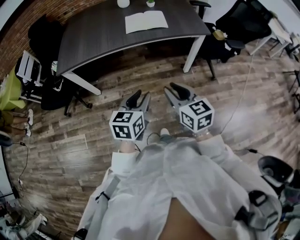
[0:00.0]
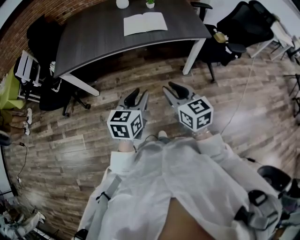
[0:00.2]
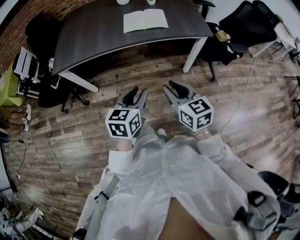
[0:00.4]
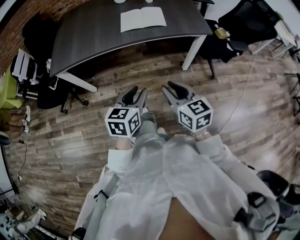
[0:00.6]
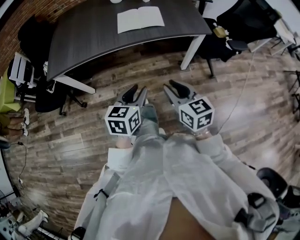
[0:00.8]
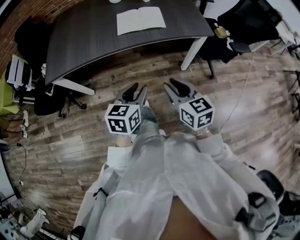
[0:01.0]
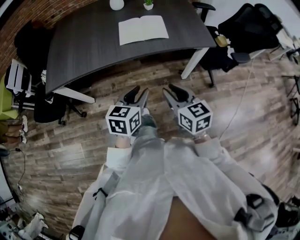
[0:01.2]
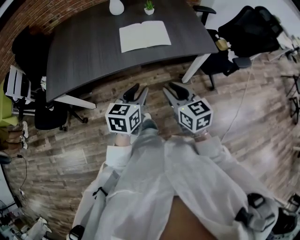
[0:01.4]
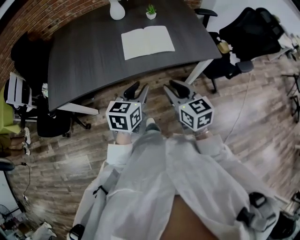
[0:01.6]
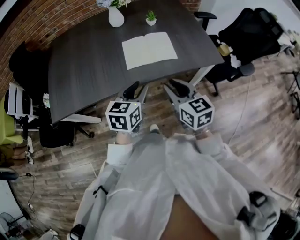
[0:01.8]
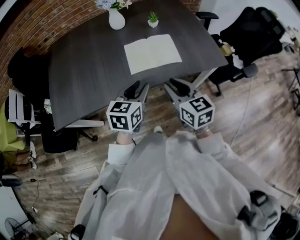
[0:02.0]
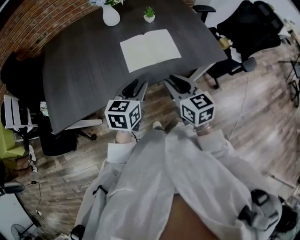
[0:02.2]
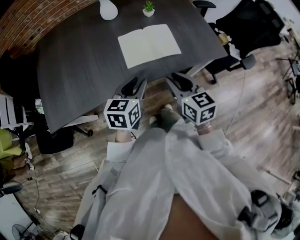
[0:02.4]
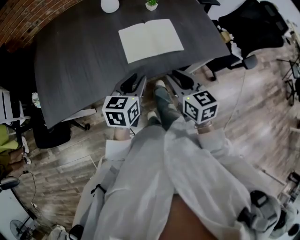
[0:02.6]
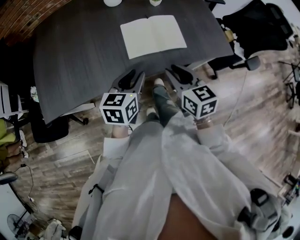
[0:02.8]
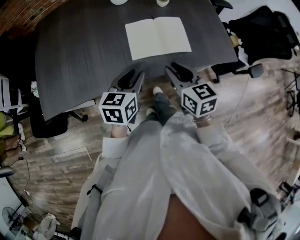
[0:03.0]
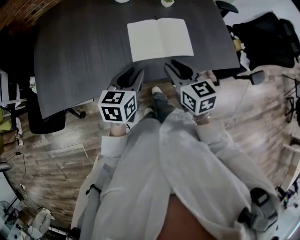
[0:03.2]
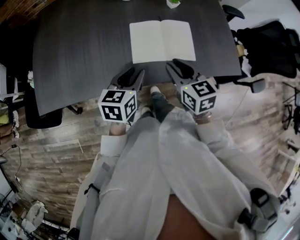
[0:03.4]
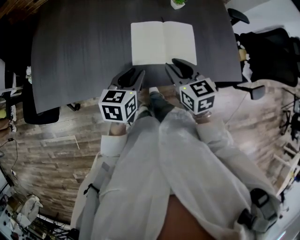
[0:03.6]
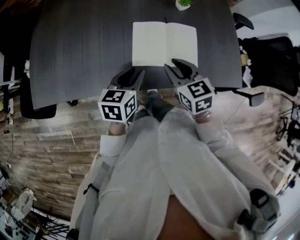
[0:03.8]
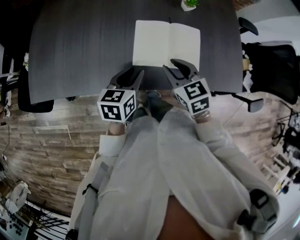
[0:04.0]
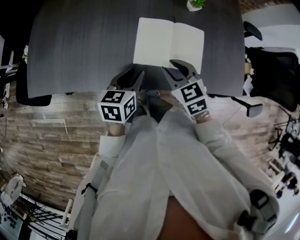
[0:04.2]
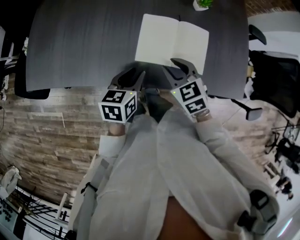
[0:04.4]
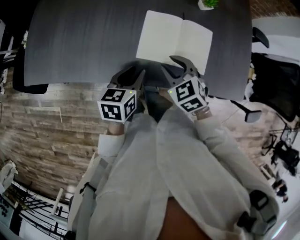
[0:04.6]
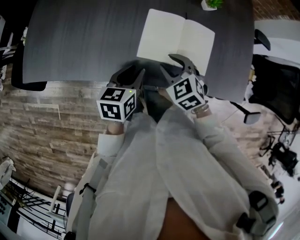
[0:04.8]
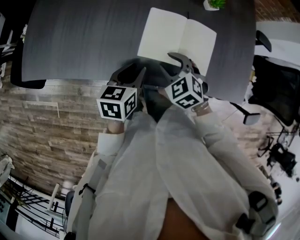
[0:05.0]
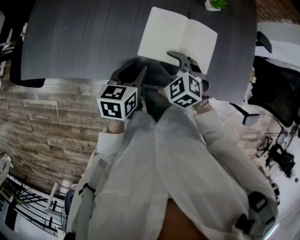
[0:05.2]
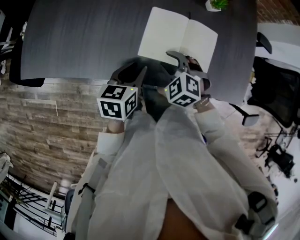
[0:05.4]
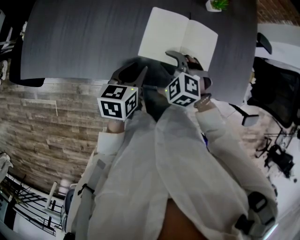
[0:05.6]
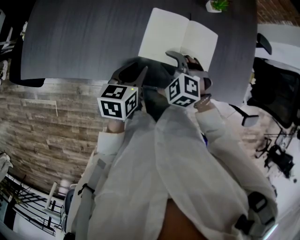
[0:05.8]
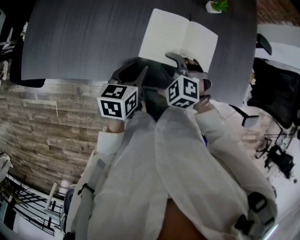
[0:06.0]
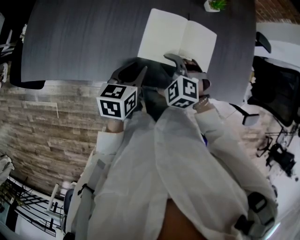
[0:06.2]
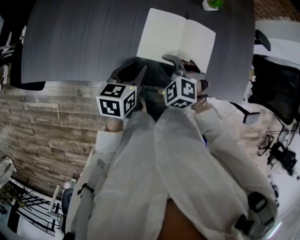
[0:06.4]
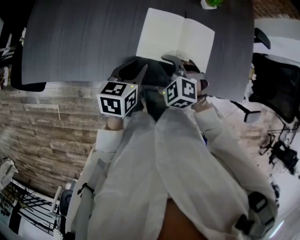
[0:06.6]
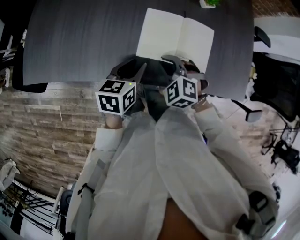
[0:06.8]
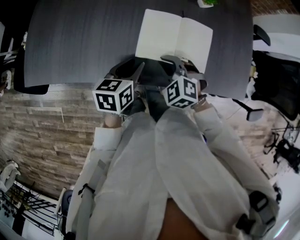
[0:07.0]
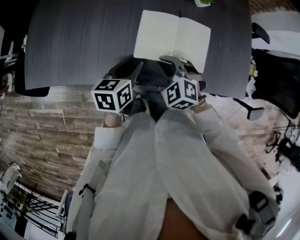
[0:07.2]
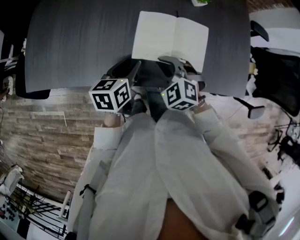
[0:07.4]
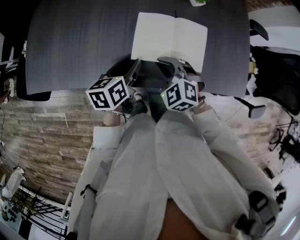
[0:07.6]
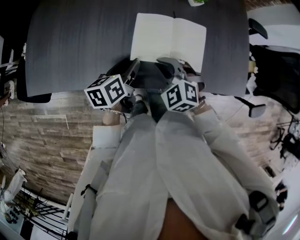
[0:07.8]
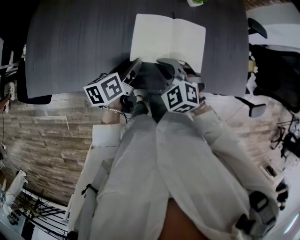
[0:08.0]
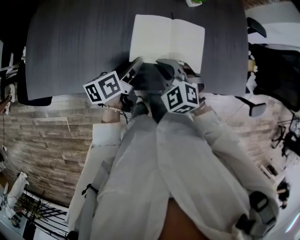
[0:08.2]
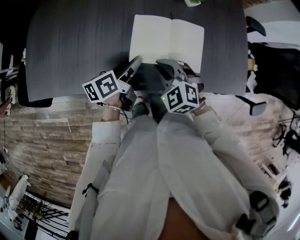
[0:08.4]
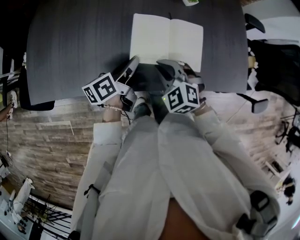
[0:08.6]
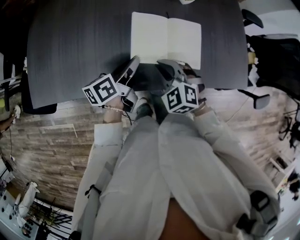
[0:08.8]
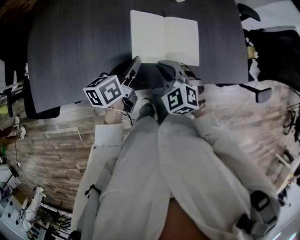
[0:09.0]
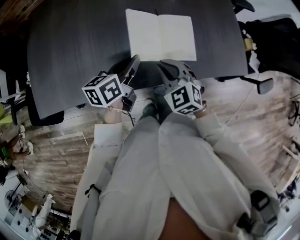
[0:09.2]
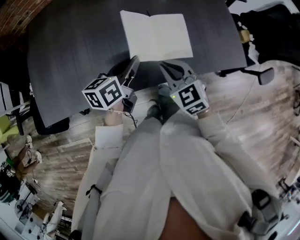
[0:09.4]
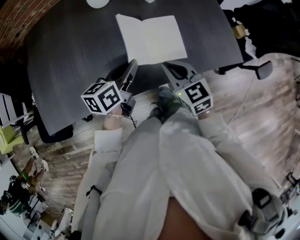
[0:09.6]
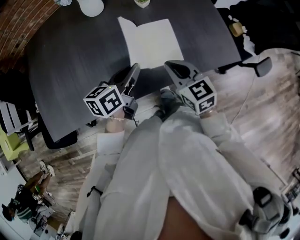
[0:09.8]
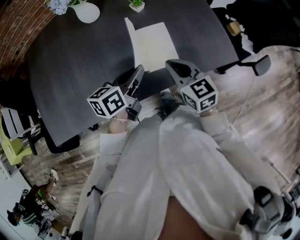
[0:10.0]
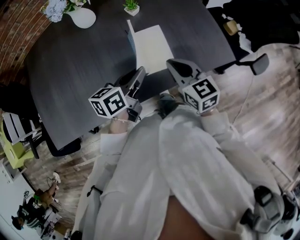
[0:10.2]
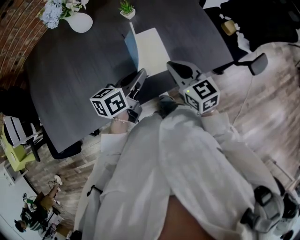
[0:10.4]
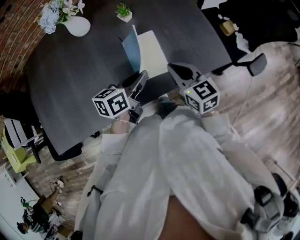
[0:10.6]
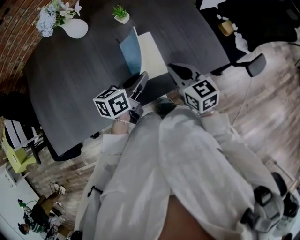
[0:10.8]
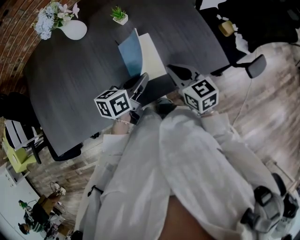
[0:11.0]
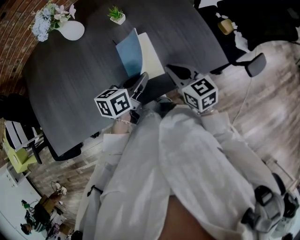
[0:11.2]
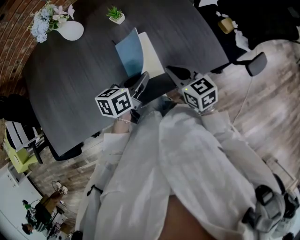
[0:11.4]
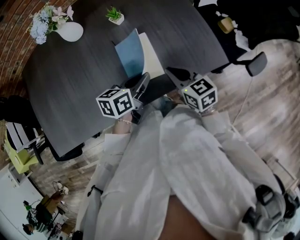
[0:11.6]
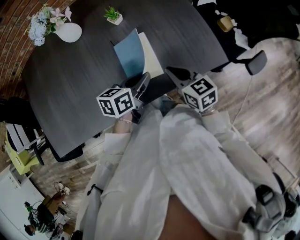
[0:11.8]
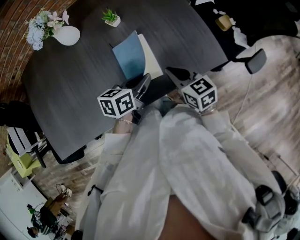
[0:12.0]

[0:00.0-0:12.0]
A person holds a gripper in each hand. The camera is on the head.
0:00.0 to 0:01.6: The grippers both shift forward by approximately 30 cm.
0:01.6 to 0:03.0: Both grippers travel together forward and to the left, about 15 cm.
0:03.0 to 0:04.4: The right gripper travels forward and downward by approximately 15 cm, and swivels roughly 40 degrees. Meanwhile the left gripper heads downward and forward, covering some 10 cm, and changes its angle by roughly 20 degrees.
0:04.4 to 0:06.0: The right gripper travels downward by about 5 cm, and rotates some 40 degrees.
0:06.0 to 0:07.6: The right gripper closes up.
0:07.6 to 0:09.0: The left gripper closes up.
0:09.0 to 0:10.4: The right gripper shifts roughly 15 cm to the right and upward, and rolls clockwise, seen from behind, by about 50 degrees. The left gripper heads to the right, covering about 15 cm, and changes its angle by roughly 20 degrees.
0:10.4 to 0:12.0: The right gripper shifts approximately 5 cm downward; the left gripper moves to the right, some 5 cm.

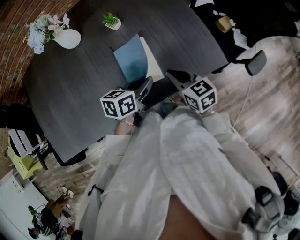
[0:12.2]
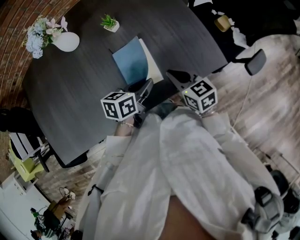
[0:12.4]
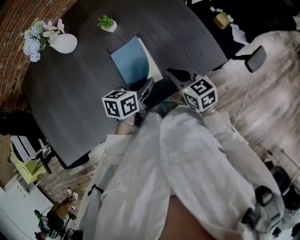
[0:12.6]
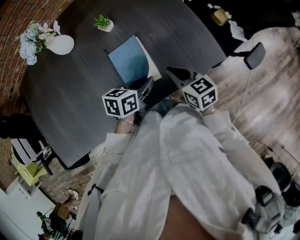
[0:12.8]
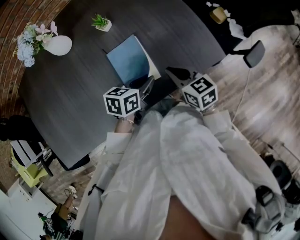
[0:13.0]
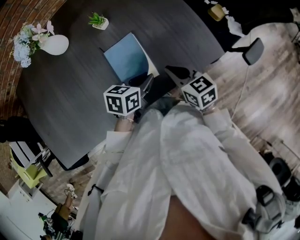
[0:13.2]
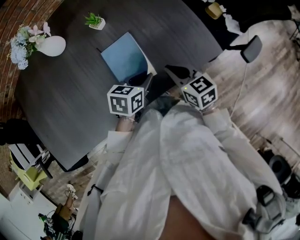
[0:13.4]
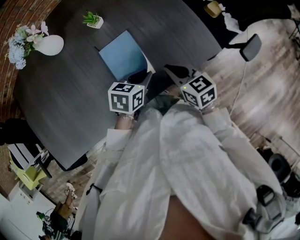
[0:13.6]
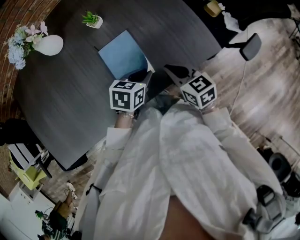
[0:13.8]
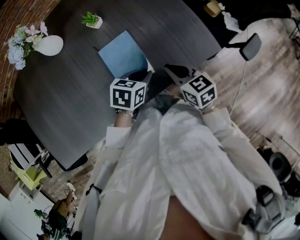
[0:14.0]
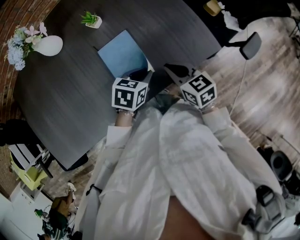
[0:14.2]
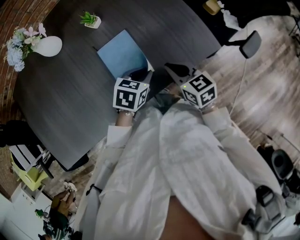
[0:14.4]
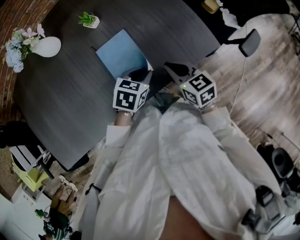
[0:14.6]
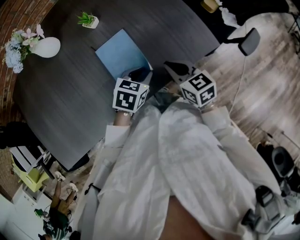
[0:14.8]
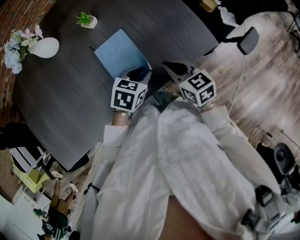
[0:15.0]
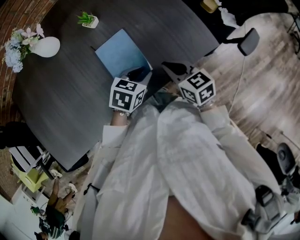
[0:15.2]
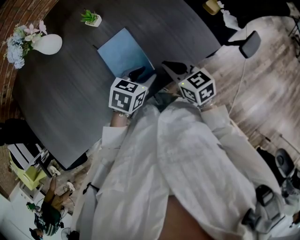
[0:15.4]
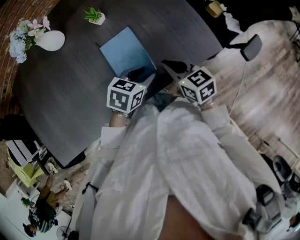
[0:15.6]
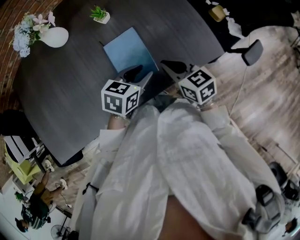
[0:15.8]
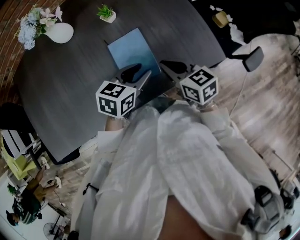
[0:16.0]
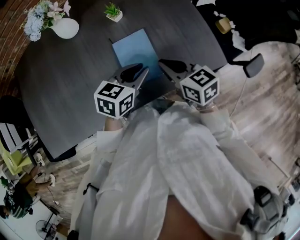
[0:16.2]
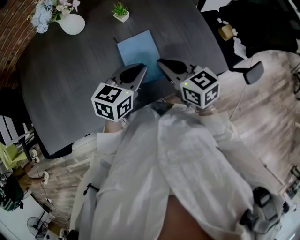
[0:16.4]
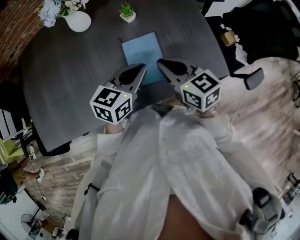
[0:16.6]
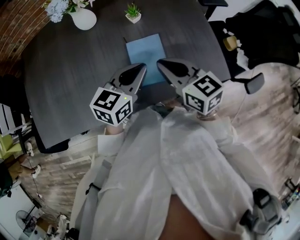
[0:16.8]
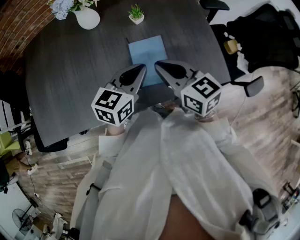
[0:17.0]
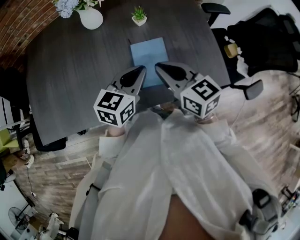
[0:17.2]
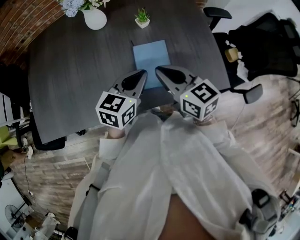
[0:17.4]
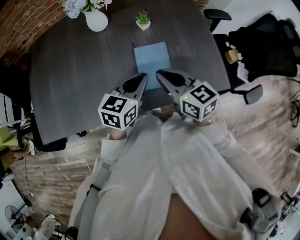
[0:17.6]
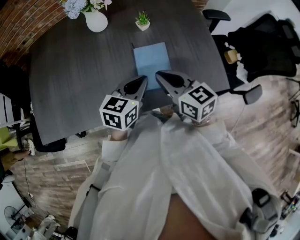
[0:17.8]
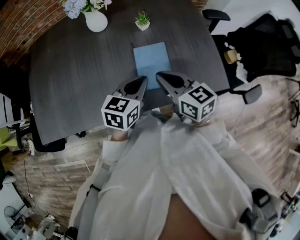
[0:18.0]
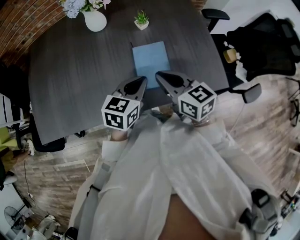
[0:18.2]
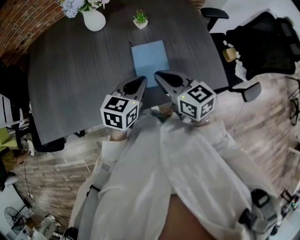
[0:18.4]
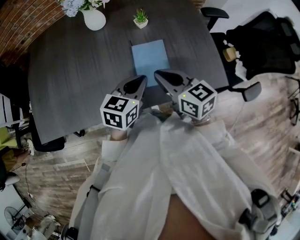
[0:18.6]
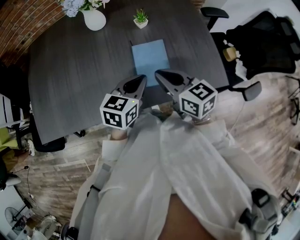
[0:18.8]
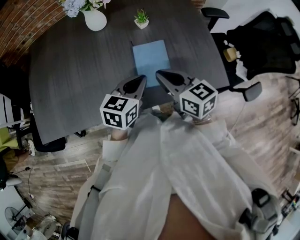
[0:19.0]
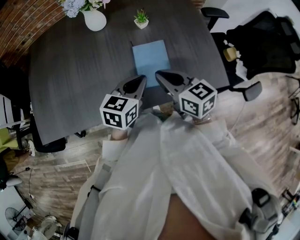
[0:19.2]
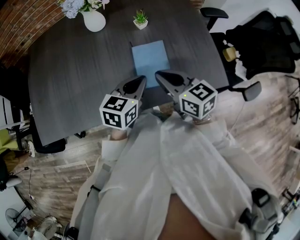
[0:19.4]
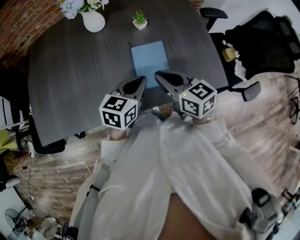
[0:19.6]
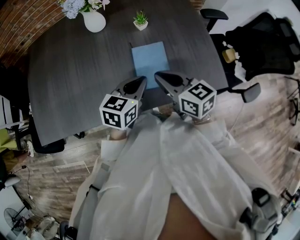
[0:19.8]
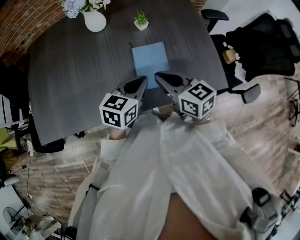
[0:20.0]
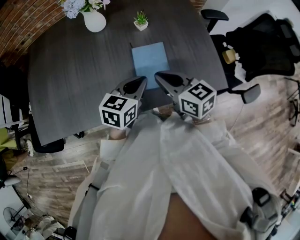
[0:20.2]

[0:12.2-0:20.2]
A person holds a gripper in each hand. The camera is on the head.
0:12.2 to 0:13.8: The left gripper ends up some 5 cm from where it was, and changes its angle by approximately 20 degrees.
0:13.8 to 0:15.4: The grippers make only small movements.
0:15.4 to 0:17.0: The grippers both shift upward by approximately 15 cm. The right gripper rotates approximately 20 degrees. The left gripper swivels approximately 40 degrees, and closes up.
0:17.0 to 0:18.6: The grippers stay close to where they were, moving slightly.
0:18.6 to 0:20.2: The two grippers keep their place.

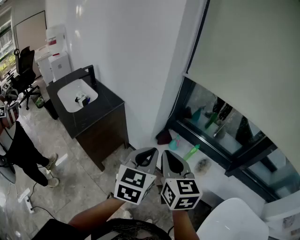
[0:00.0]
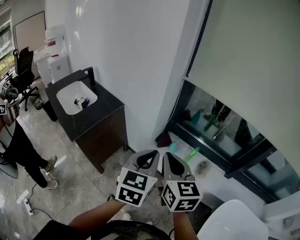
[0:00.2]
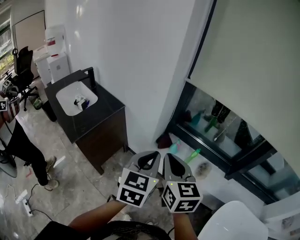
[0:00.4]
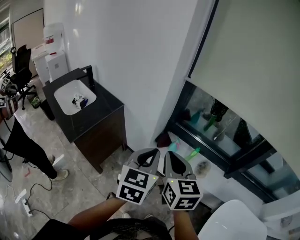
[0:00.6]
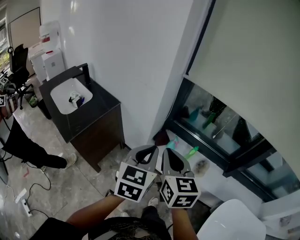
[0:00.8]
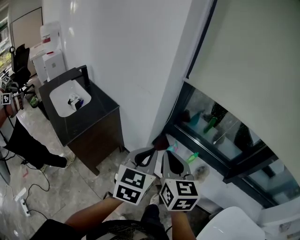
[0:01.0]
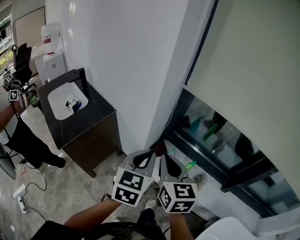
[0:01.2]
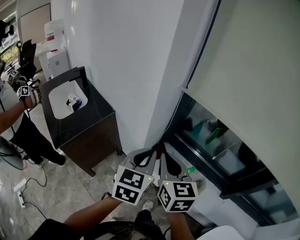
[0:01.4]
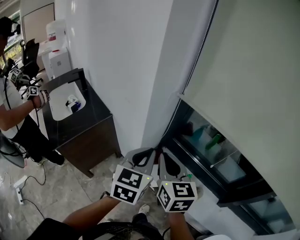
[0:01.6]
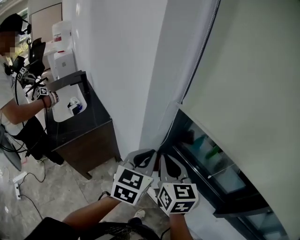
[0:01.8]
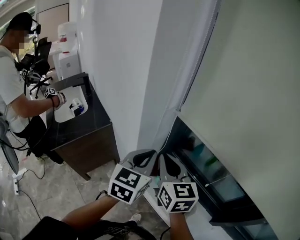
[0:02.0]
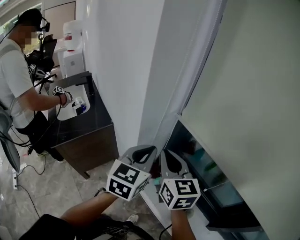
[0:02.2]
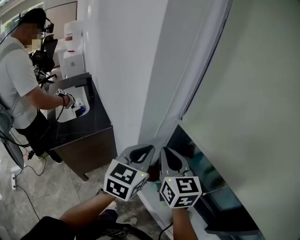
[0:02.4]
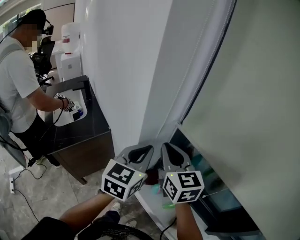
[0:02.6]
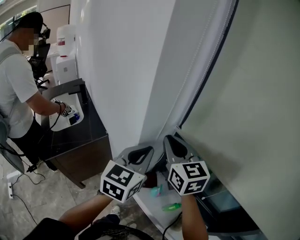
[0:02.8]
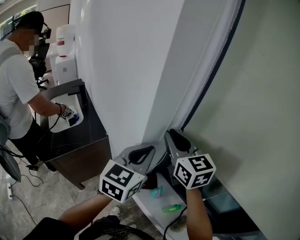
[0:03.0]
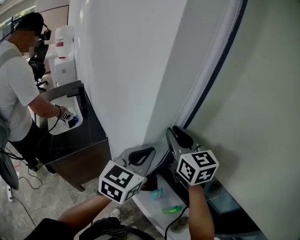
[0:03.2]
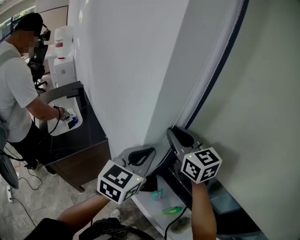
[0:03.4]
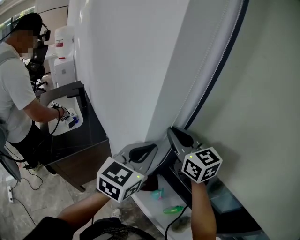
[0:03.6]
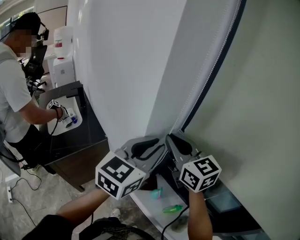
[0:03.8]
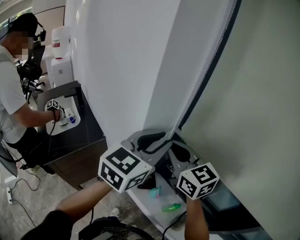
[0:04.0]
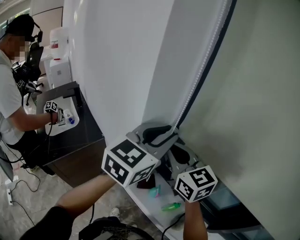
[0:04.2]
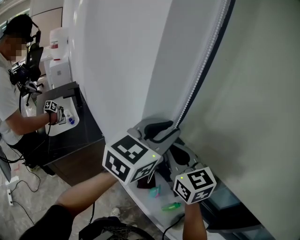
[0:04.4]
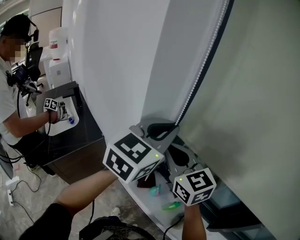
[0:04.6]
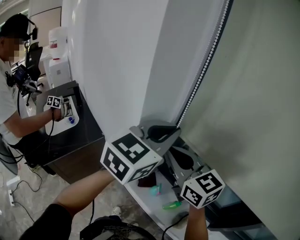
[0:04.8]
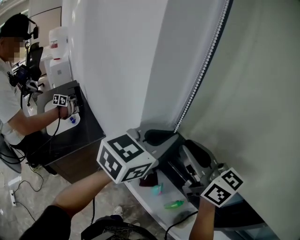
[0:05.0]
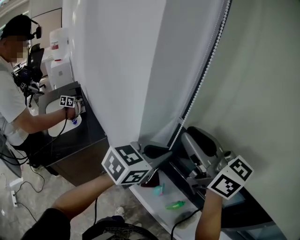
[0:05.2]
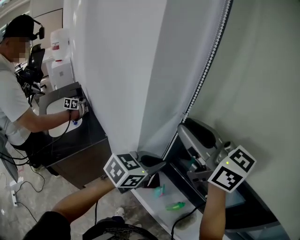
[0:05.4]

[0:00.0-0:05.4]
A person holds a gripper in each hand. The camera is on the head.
0:00.0 to 0:01.4: Both grippers move forward, approximately 20 cm.
0:01.4 to 0:02.8: The grippers both shift forward and upward by roughly 20 cm. The right gripper changes its angle by roughly 20 degrees.
0:02.8 to 0:04.0: The left gripper moves upward, about 10 cm, and opens up.
0:04.0 to 0:05.4: The left gripper goes some 10 cm downward, swivels roughly 30 degrees, and closes its fingers; the right gripper shifts approximately 15 cm upward.
